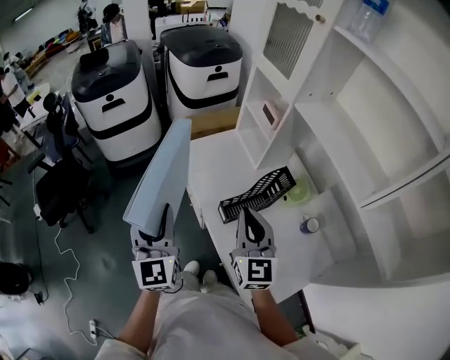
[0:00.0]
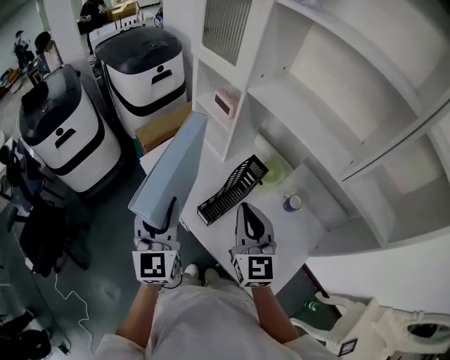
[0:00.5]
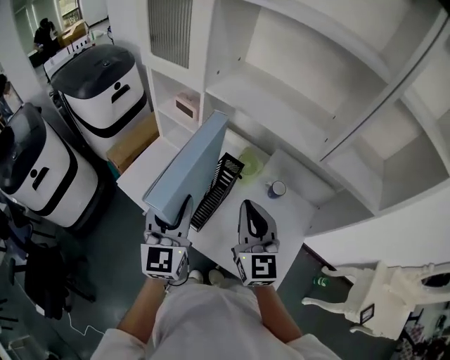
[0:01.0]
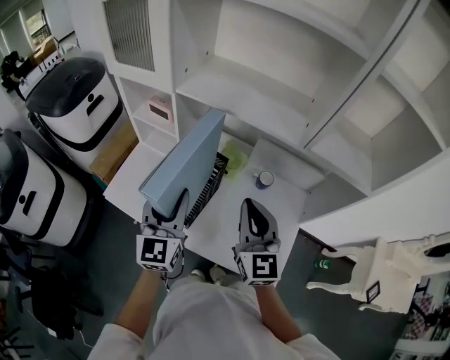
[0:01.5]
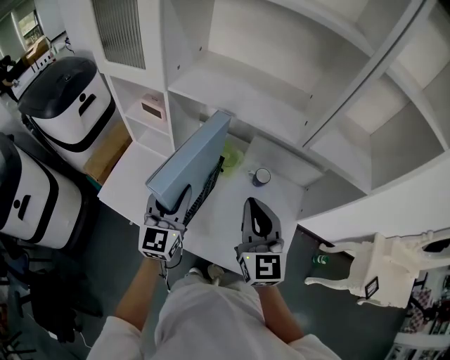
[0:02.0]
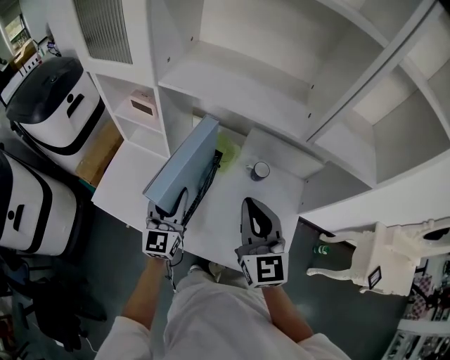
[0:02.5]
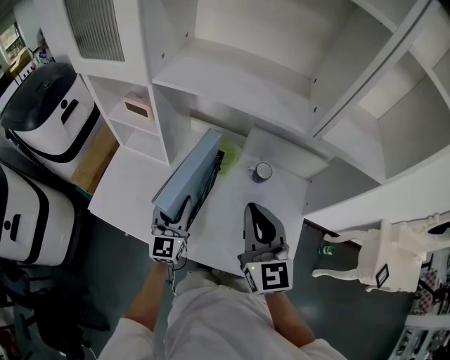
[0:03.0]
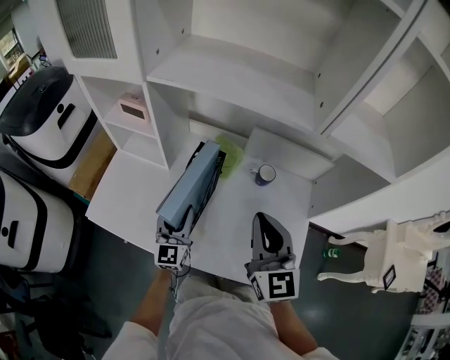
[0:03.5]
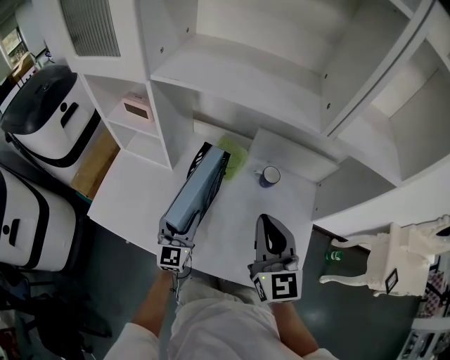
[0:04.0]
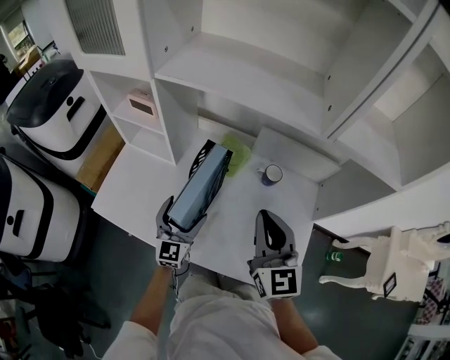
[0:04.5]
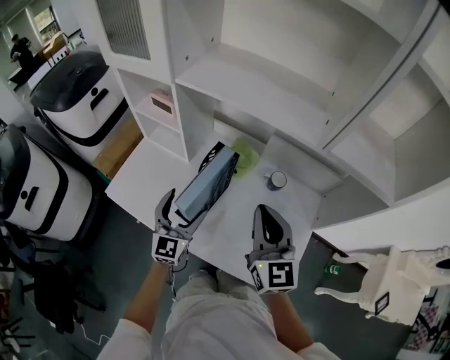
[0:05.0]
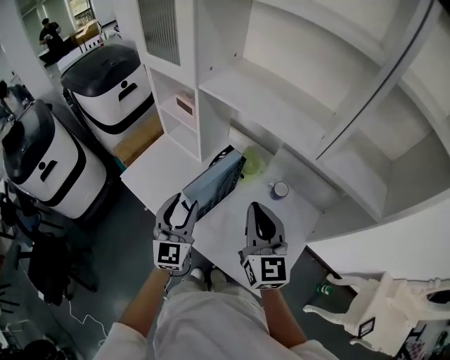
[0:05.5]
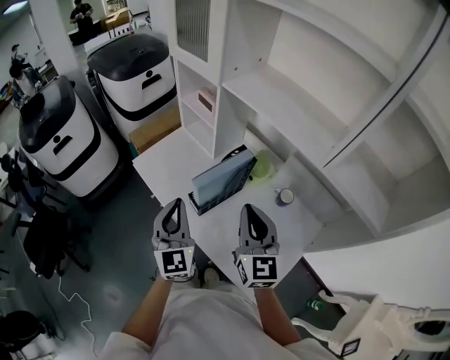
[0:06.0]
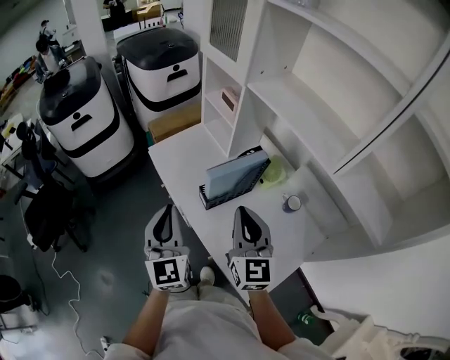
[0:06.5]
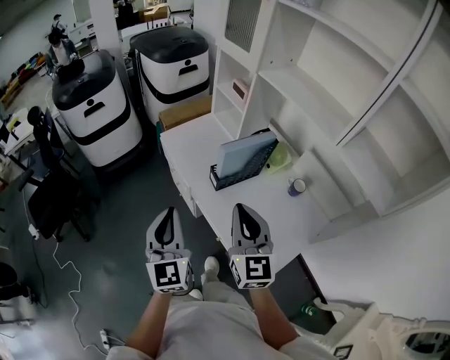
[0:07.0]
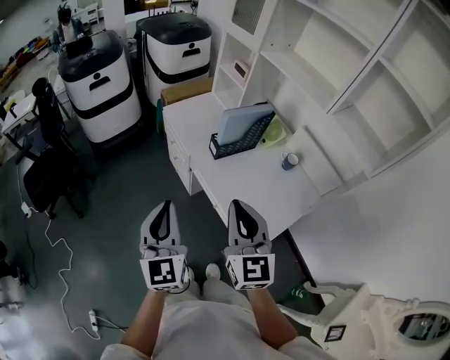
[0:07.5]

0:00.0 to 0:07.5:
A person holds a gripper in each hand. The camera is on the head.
0:00.0 to 0:02.0: The left gripper ends up approximately 30 cm from where it was, and turns by about 60 degrees. The right gripper changes place by some 15 cm, and rotates approximately 40 degrees.
0:02.0 to 0:04.0: The left gripper shifts roughly 20 cm downward. Meanwhile the right gripper moves downward, about 10 cm.
0:04.0 to 0:05.5: The right gripper is displaced upward by about 10 cm, while the left gripper moves upward and backward, some 20 cm, rotates approximately 20 degrees, and opens, then closes once more.
0:05.5 to 0:07.5: The right gripper shifts by approximately 35 cm, and changes its angle by about 20 degrees. The left gripper ends up approximately 40 cm from where it was, turns by some 30 degrees, and closes its fingers.

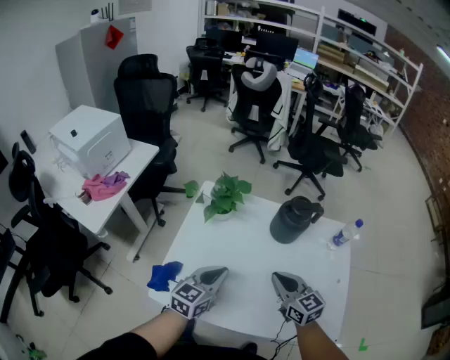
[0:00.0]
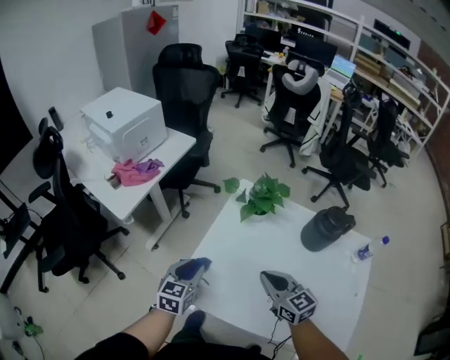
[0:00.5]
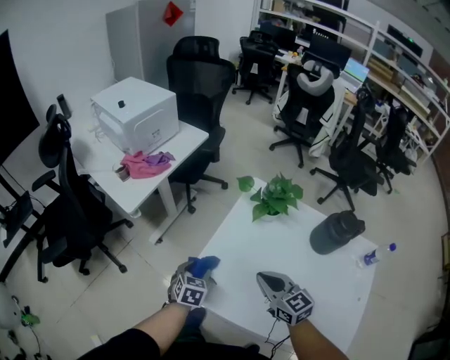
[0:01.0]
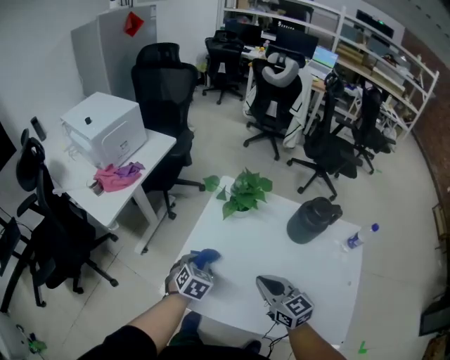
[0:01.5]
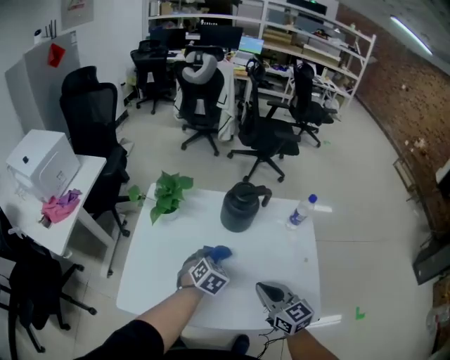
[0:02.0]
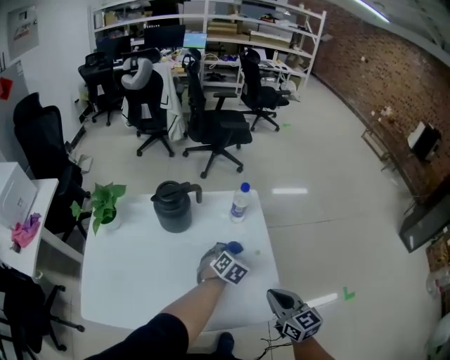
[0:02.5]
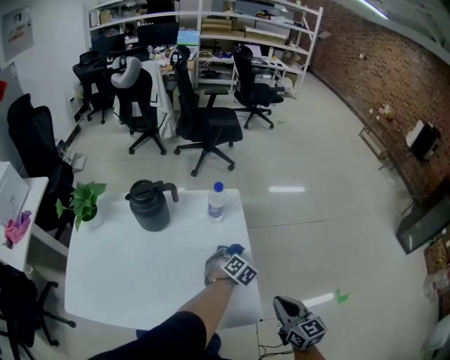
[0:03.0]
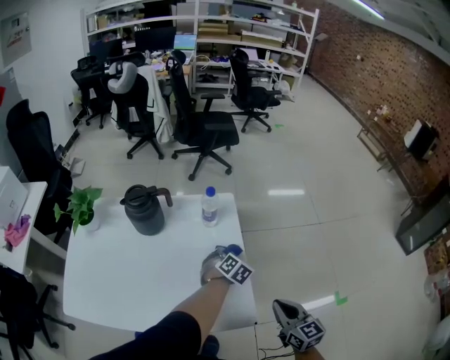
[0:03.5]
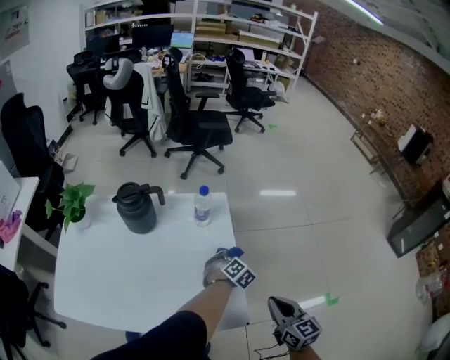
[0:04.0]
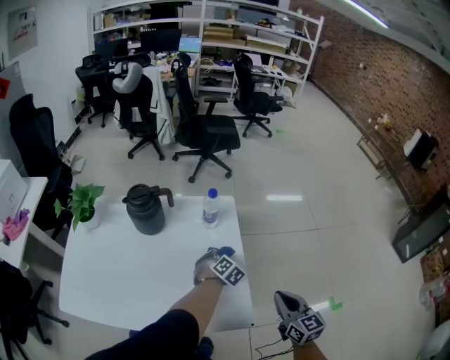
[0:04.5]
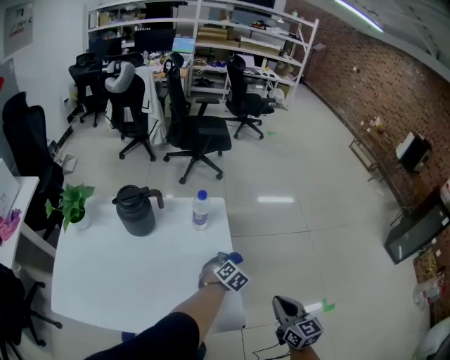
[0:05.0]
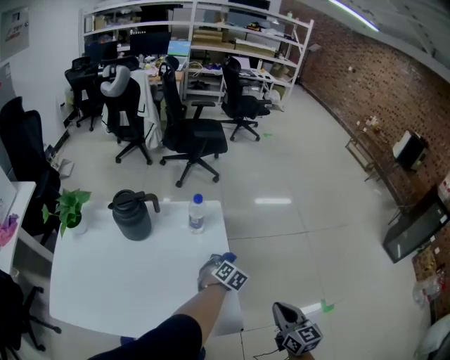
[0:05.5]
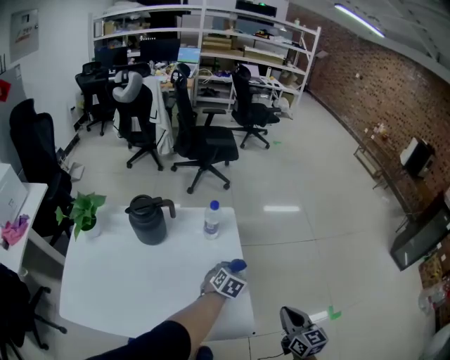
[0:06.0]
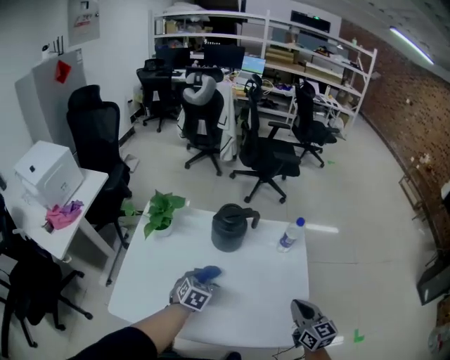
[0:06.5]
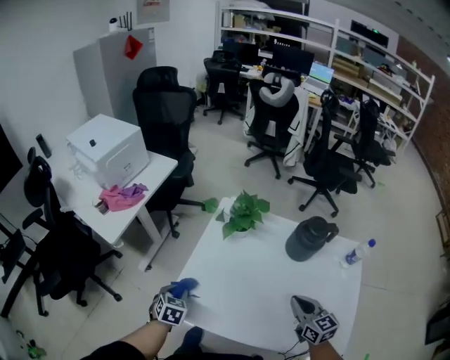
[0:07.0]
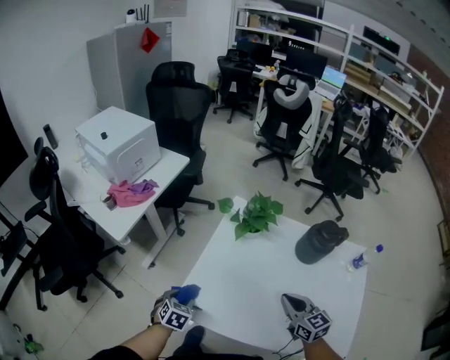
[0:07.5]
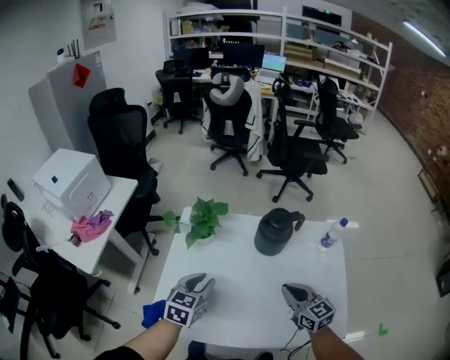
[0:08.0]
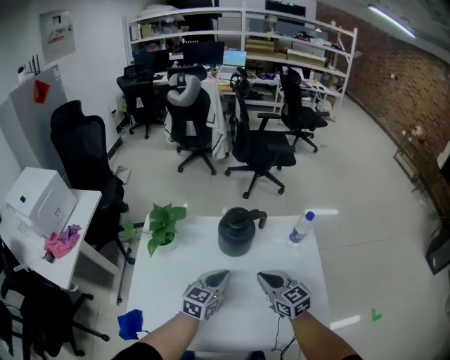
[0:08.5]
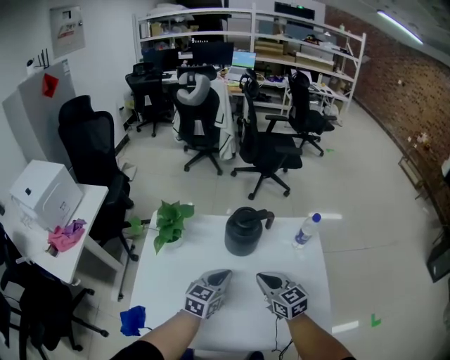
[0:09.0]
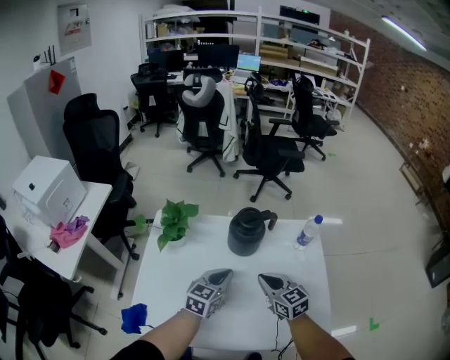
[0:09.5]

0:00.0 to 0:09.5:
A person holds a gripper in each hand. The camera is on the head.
0:00.0 to 0:02.0: The left gripper angles its fingers downward, by some 30 degrees, and opens, then closes once more.
0:02.0 to 0:04.0: The two grippers go about 40 cm to the right. The right gripper rotates some 20 degrees; the left gripper swivels approximately 20 degrees.
0:05.5 to 0:07.5: The two grippers travel together, some 70 cm. The right gripper turns by roughly 40 degrees. The left gripper rolls counterclockwise, seen from behind, by about 40 degrees.
0:07.5 to 0:09.5: The left gripper shifts by some 40 cm, angles its fingers upward, by some 40 degrees, and closes its fingers. The right gripper changes place by about 15 cm.

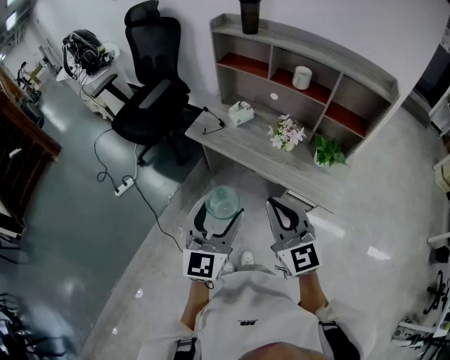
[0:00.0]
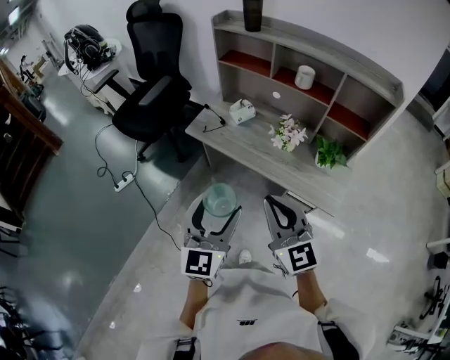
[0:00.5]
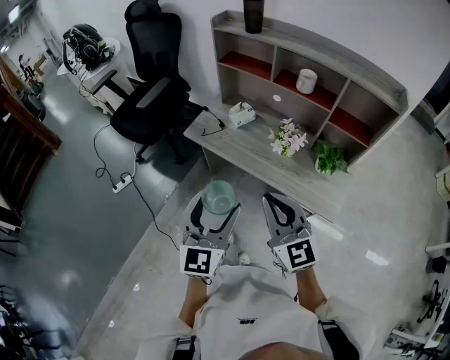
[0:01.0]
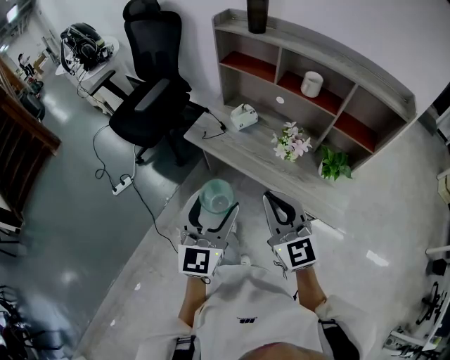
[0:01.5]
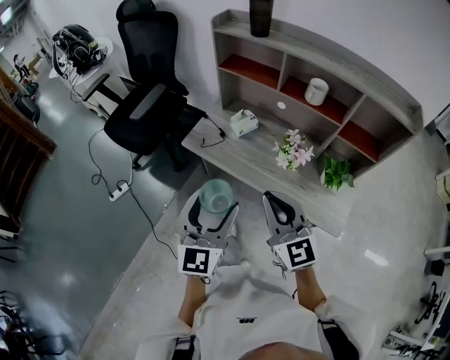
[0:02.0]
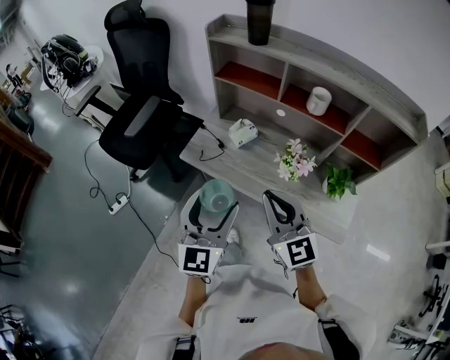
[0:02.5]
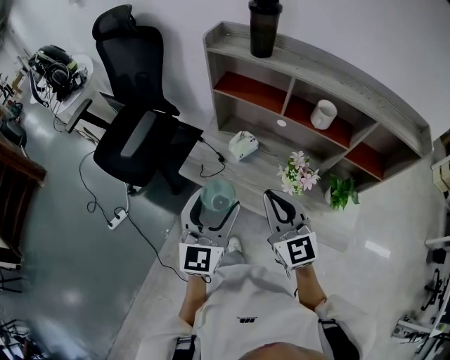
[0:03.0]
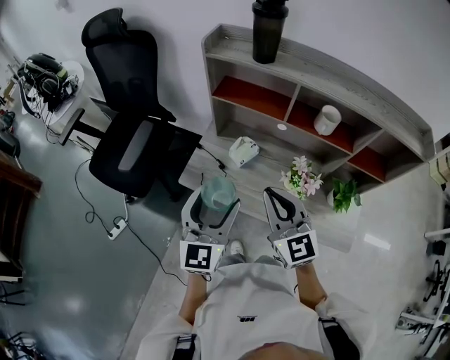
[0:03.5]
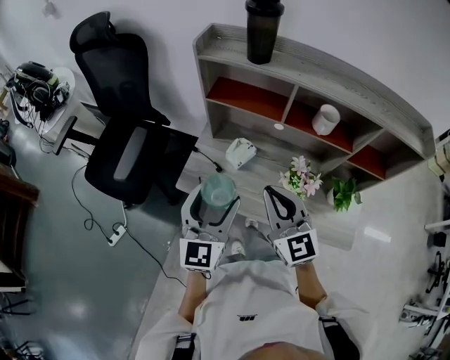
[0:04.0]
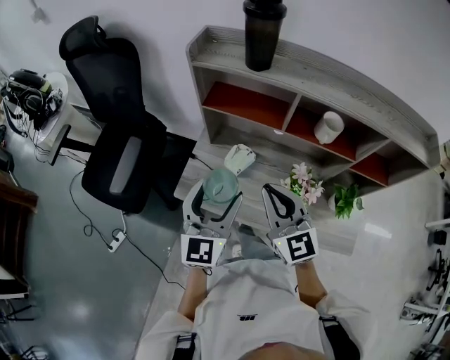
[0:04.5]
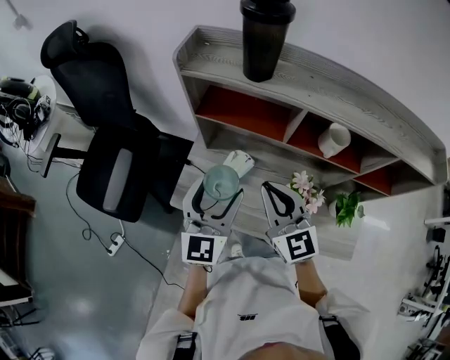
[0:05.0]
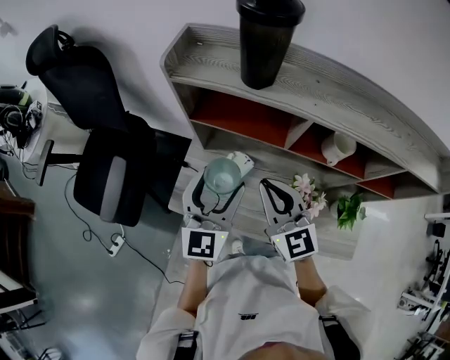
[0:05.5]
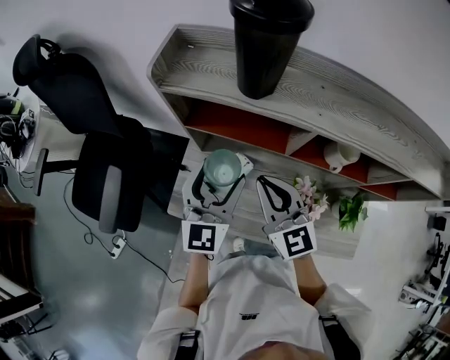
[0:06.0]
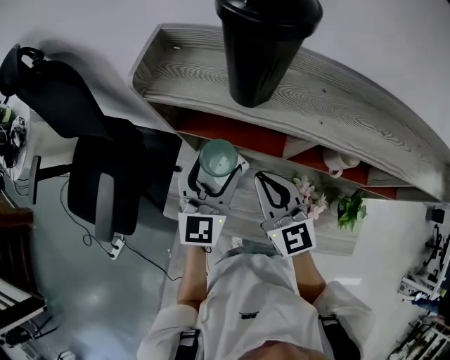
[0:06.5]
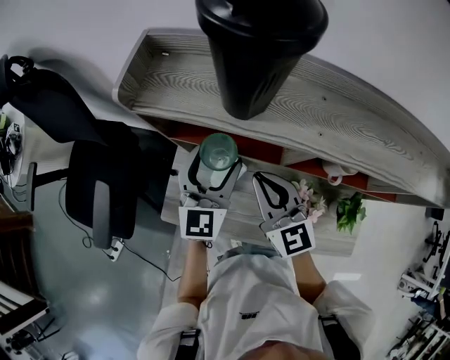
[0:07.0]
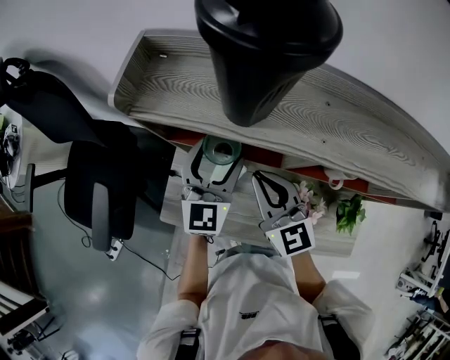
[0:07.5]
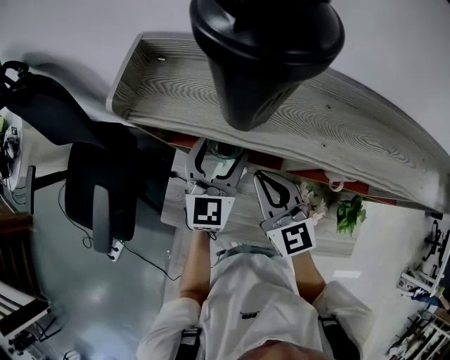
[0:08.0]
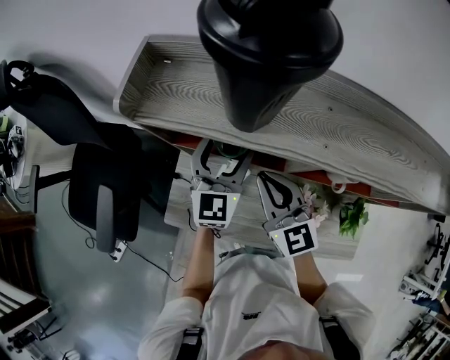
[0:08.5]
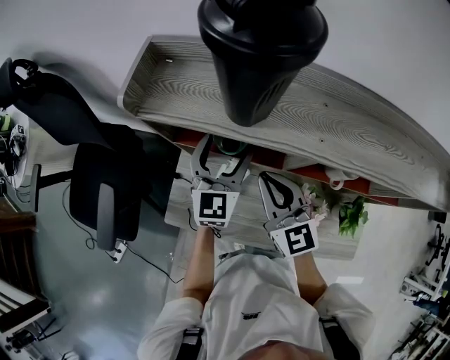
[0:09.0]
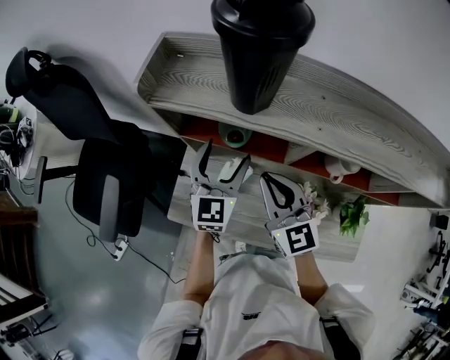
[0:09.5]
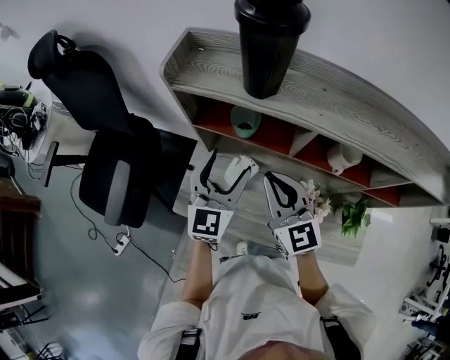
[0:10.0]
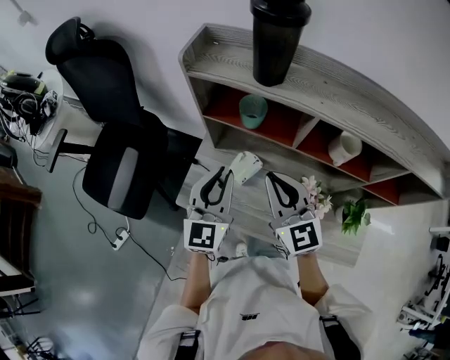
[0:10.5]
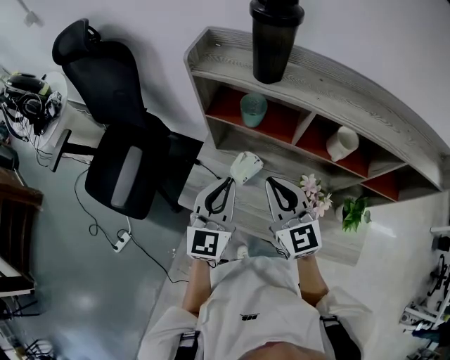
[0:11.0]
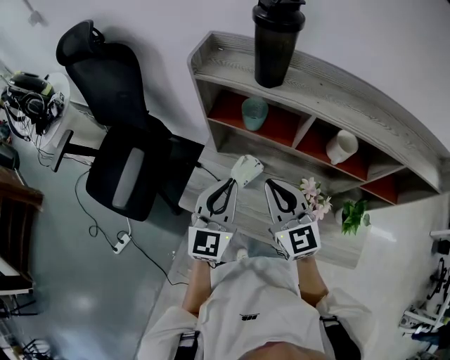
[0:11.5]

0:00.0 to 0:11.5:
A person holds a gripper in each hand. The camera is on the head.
0:00.0 to 0:02.0: Both grippers move forward, approximately 15 cm.
0:02.0 to 0:04.0: Both grippers travel together forward, some 20 cm.
0:04.0 to 0:06.0: The grippers both shift forward by about 20 cm.
0:06.0 to 0:07.5: The left gripper shifts about 10 cm forward, while the right gripper heads forward, covering approximately 5 cm.
0:07.5 to 0:09.5: The grippers stay close to where they were, moving slightly.
0:09.5 to 0:11.5: The left gripper shifts about 15 cm backward, and closes. The right gripper goes roughly 10 cm backward.
